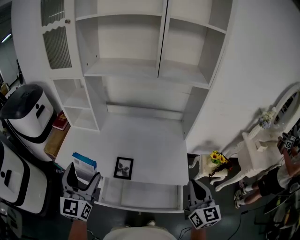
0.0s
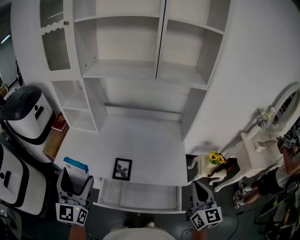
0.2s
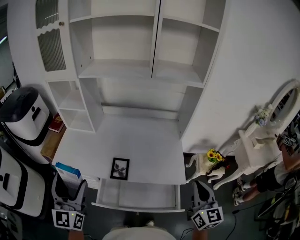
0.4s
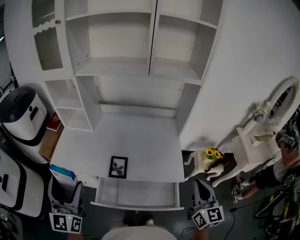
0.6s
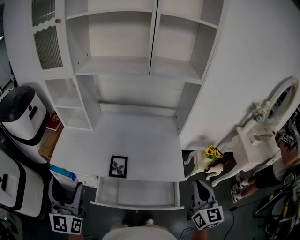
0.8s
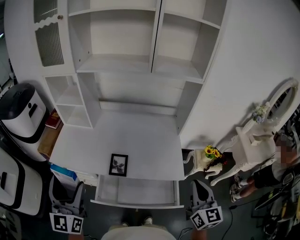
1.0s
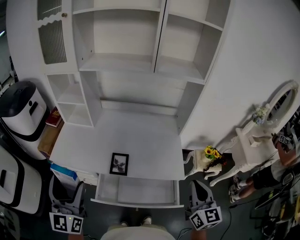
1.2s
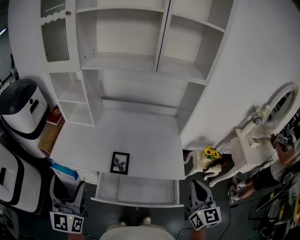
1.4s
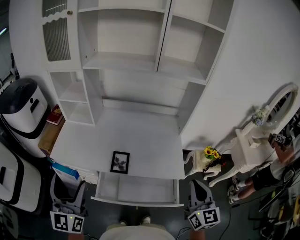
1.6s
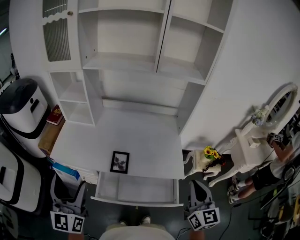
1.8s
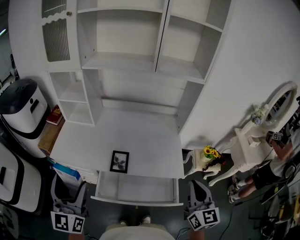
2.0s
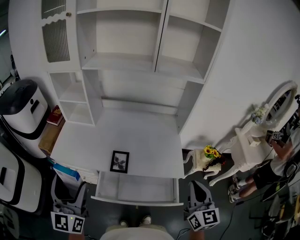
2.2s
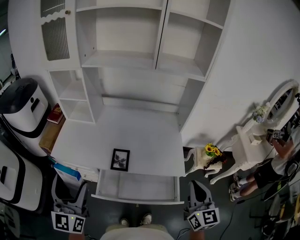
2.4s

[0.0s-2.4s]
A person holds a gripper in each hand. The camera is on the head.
0.0s to 1.2s: The left gripper heads backward, covering some 5 cm.
1.2s to 2.4s: The grippers make only small movements.

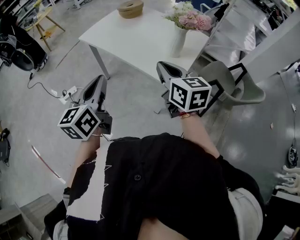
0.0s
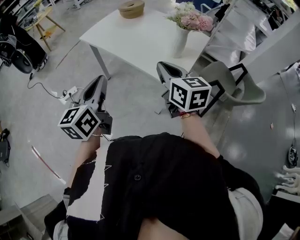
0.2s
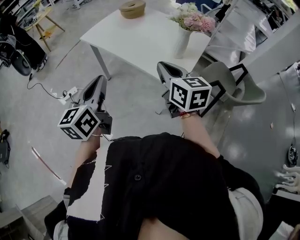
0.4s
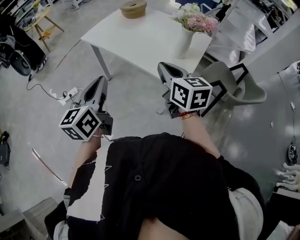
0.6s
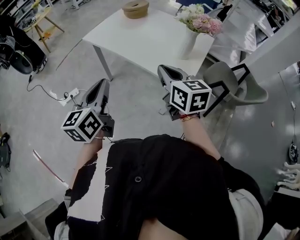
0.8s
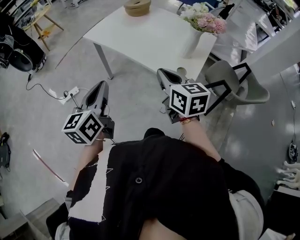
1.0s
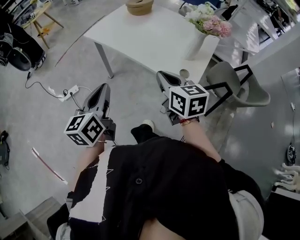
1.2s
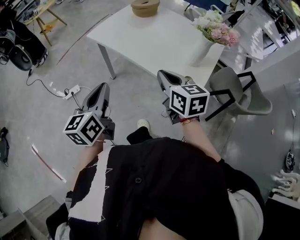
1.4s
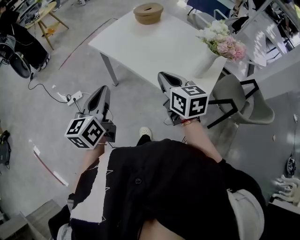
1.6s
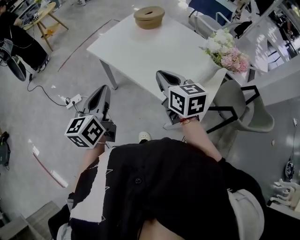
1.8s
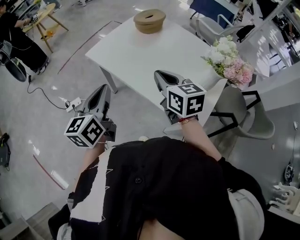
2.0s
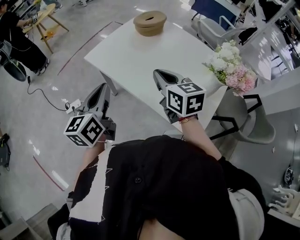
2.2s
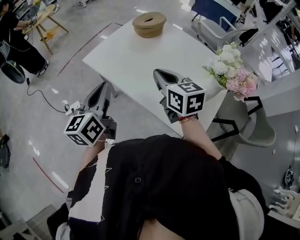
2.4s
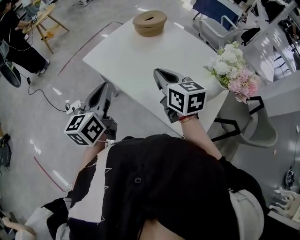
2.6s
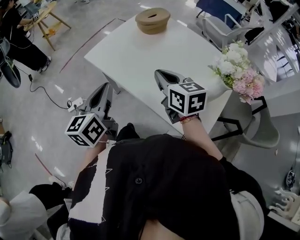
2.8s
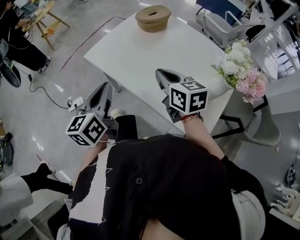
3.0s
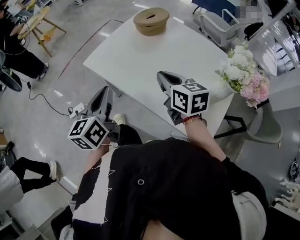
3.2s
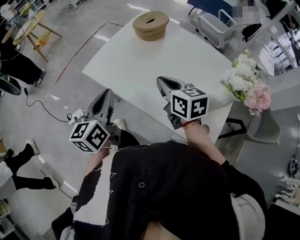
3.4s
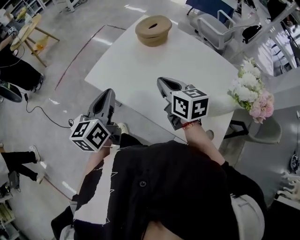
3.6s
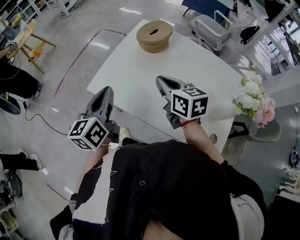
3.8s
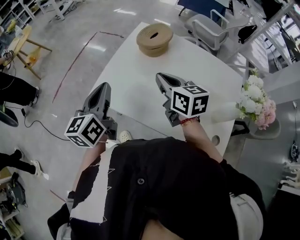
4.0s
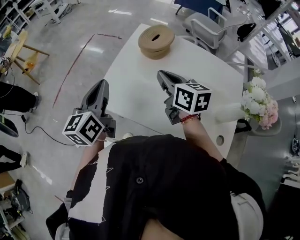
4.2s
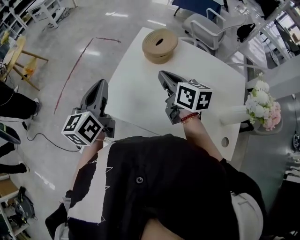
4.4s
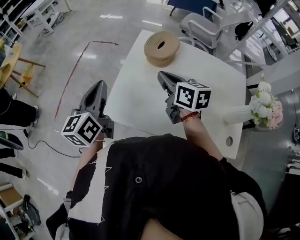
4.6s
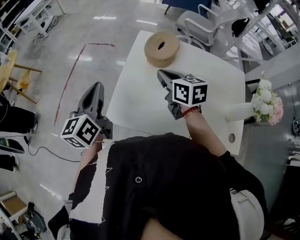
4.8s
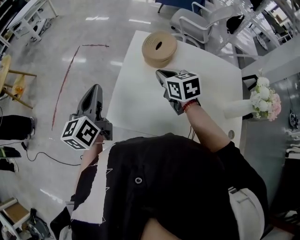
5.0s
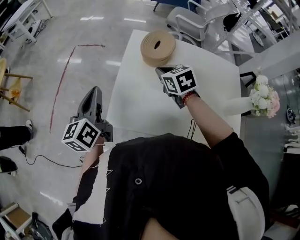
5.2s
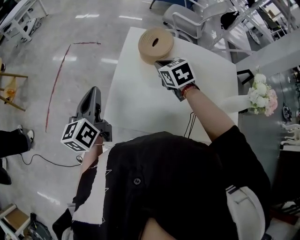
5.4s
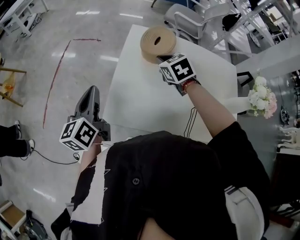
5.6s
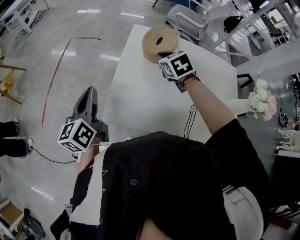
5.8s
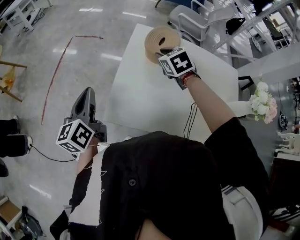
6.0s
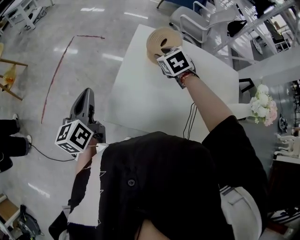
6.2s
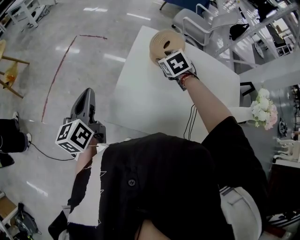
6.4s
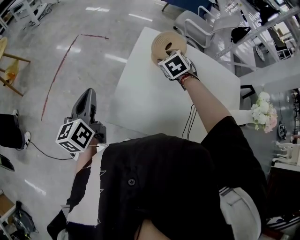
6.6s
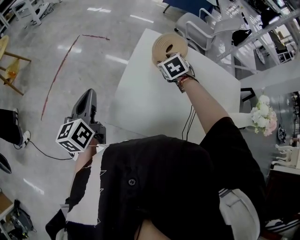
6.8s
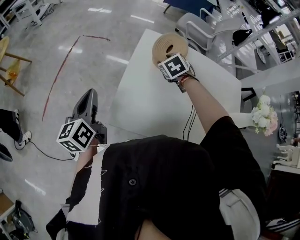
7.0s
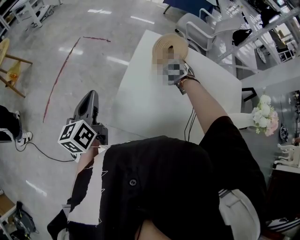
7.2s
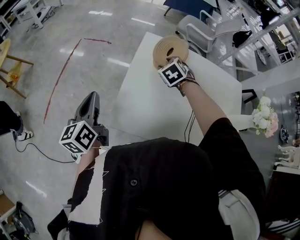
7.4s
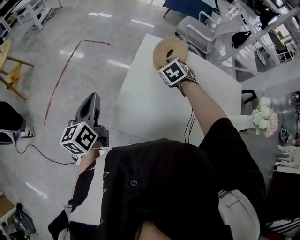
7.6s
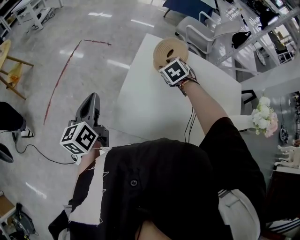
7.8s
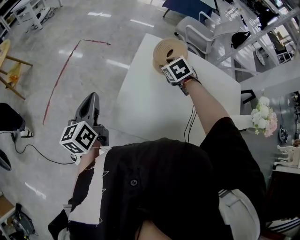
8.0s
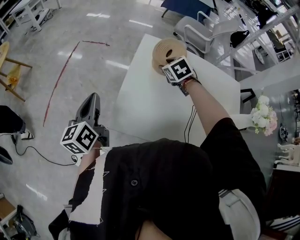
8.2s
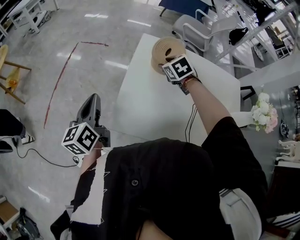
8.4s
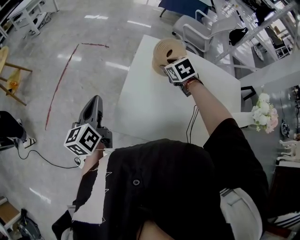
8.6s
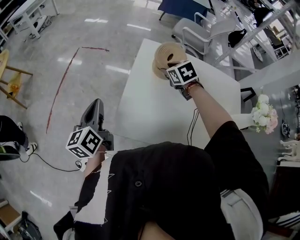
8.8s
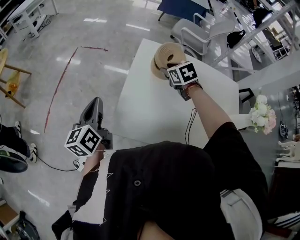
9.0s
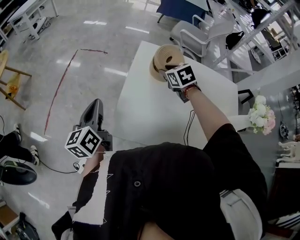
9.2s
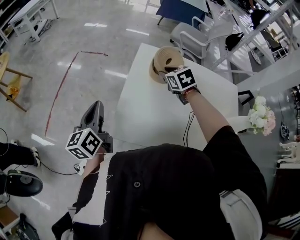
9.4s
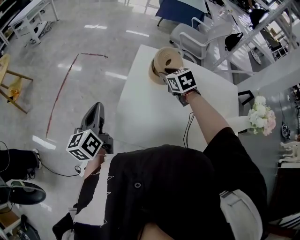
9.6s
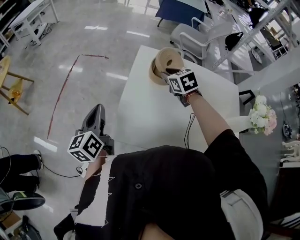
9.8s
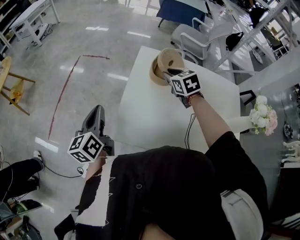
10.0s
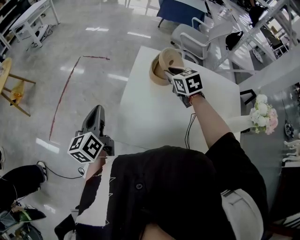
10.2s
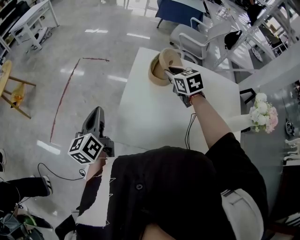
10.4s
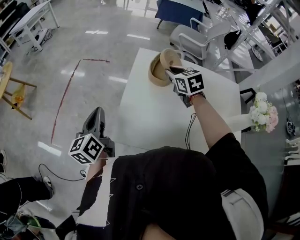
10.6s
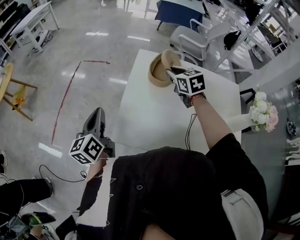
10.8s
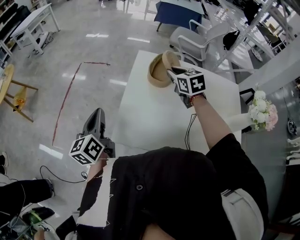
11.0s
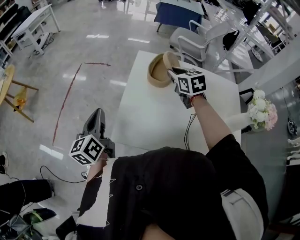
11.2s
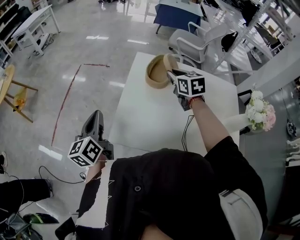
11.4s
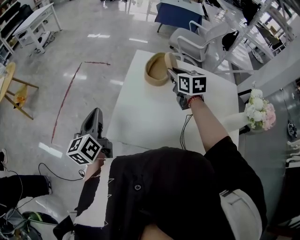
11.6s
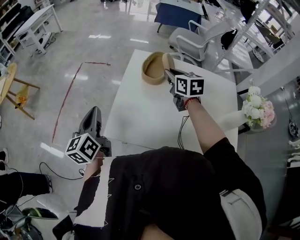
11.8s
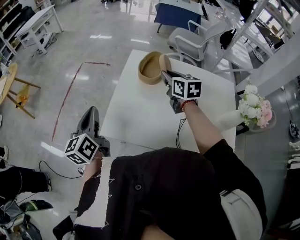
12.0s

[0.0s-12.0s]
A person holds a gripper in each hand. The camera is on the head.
0.0s to 1.6s: Both grippers travel together forward, to the left and downward, roughly 15 cm.
1.6s to 3.0s: Both grippers travel together forward, approximately 15 cm.
3.0s to 4.4s: The right gripper is displaced forward by some 20 cm, and rotates some 20 degrees, while the left gripper travels forward and to the left by some 30 cm.
4.4s to 6.0s: The right gripper travels forward and downward by roughly 15 cm, changes its angle by some 50 degrees, and opens up; the left gripper heads to the left, downward and forward, covering about 15 cm.
6.0s to 7.6s: The right gripper is displaced downward by approximately 5 cm, and opens its fingers.
7.6s to 9.0s: The grippers make only small movements.
9.0s to 10.4s: The right gripper goes roughly 5 cm upward.
10.4s to 12.0s: The right gripper is displaced backward by about 5 cm, and turns by approximately 20 degrees, while the left gripper changes place by approximately 10 cm.

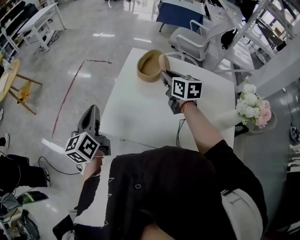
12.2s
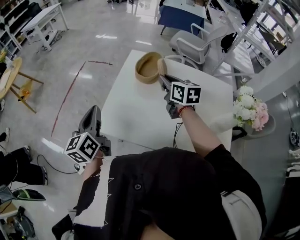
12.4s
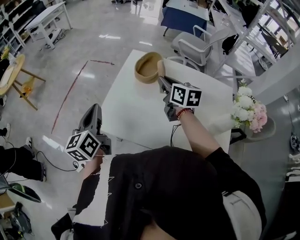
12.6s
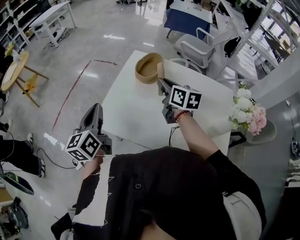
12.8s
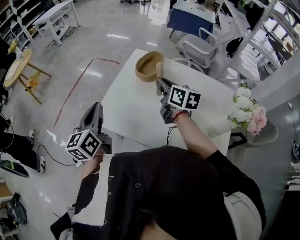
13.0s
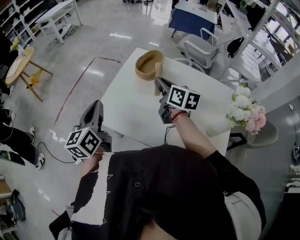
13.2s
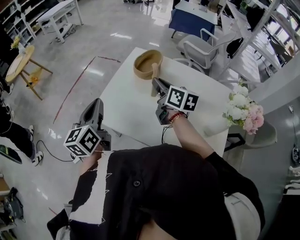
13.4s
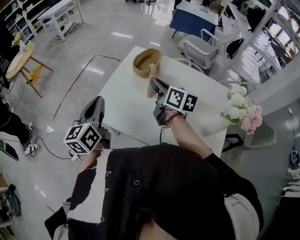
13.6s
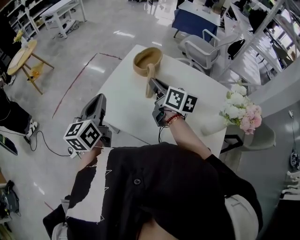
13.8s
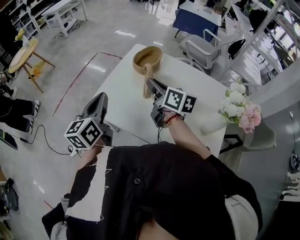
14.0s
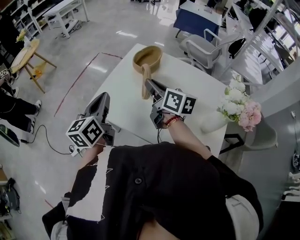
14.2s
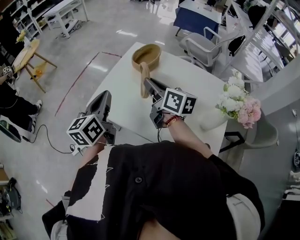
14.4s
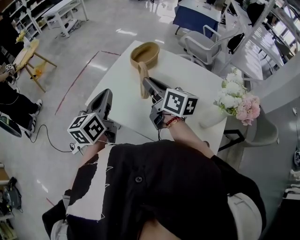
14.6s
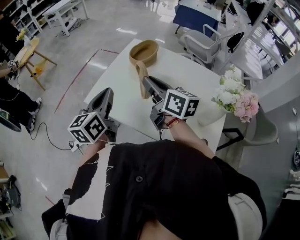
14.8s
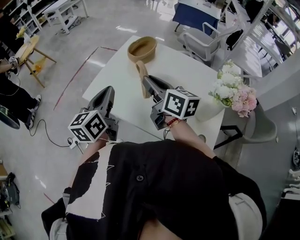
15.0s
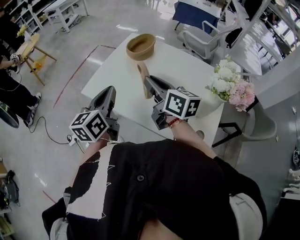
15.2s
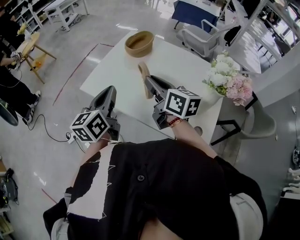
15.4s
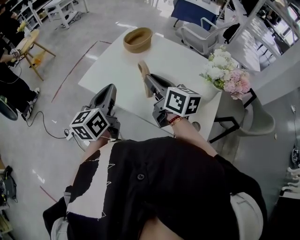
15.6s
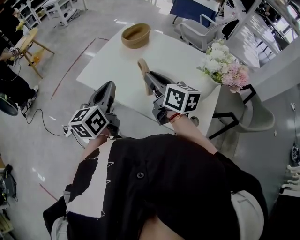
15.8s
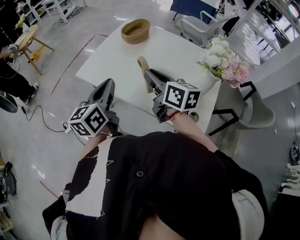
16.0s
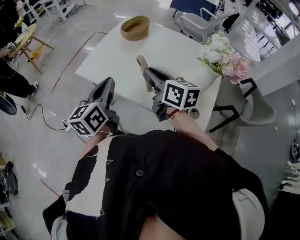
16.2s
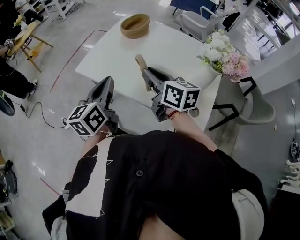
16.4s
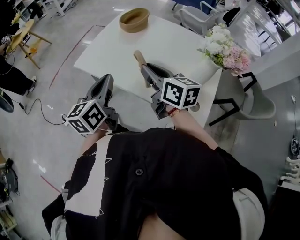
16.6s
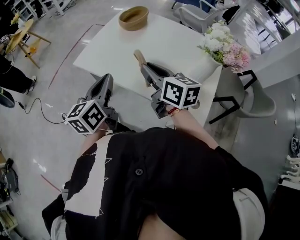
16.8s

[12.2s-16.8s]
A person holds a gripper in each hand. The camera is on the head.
12.2s to 13.8s: The left gripper moves to the right and backward, roughly 15 cm. The right gripper goes about 10 cm backward, and turns by approximately 30 degrees.
13.8s to 15.2s: The right gripper is displaced backward by roughly 10 cm. The left gripper heads backward and to the right, covering some 10 cm.
15.2s to 16.8s: The grippers both shift backward by roughly 10 cm.

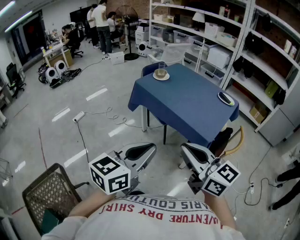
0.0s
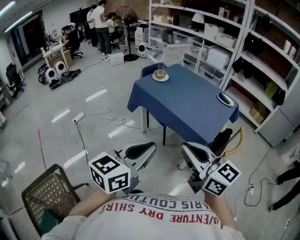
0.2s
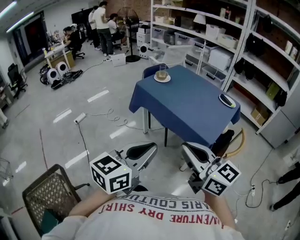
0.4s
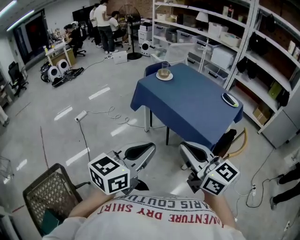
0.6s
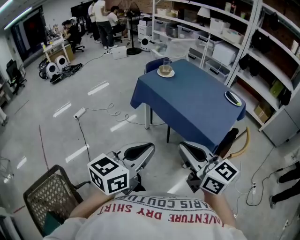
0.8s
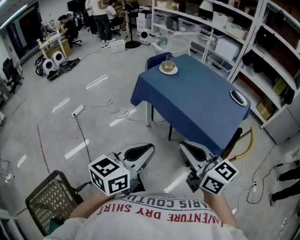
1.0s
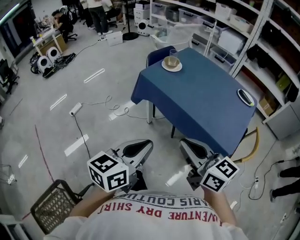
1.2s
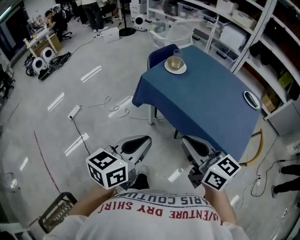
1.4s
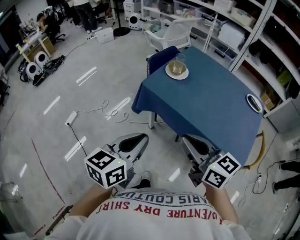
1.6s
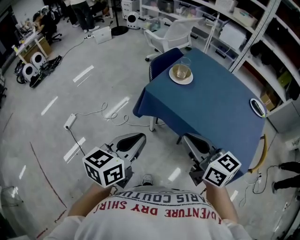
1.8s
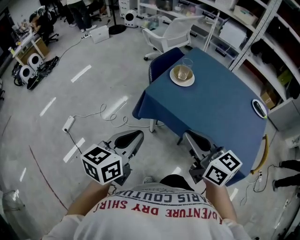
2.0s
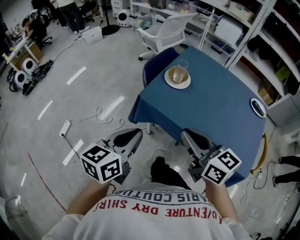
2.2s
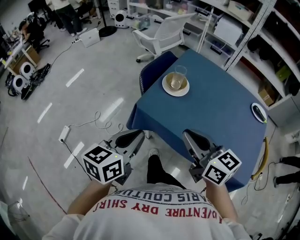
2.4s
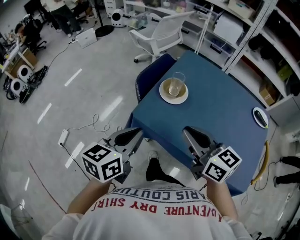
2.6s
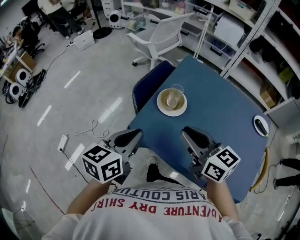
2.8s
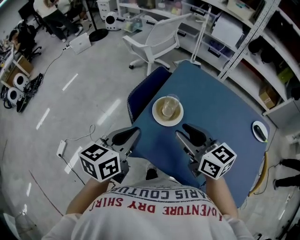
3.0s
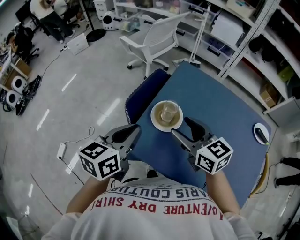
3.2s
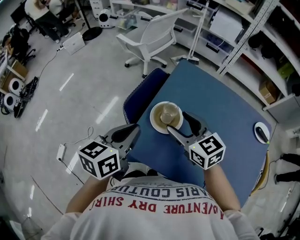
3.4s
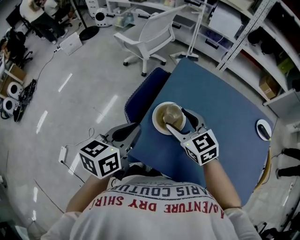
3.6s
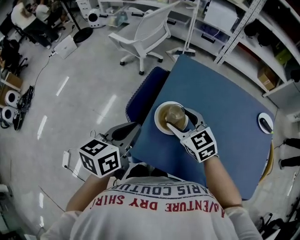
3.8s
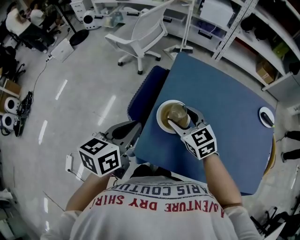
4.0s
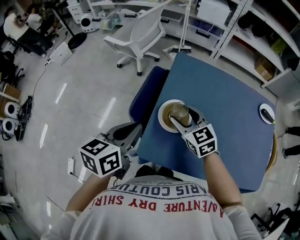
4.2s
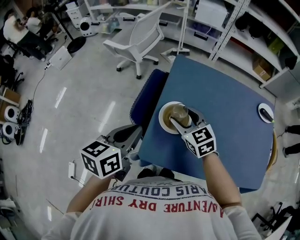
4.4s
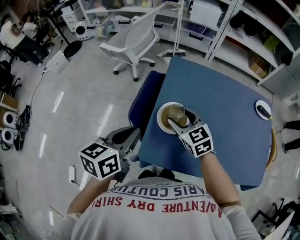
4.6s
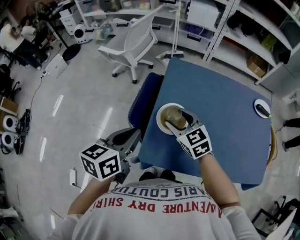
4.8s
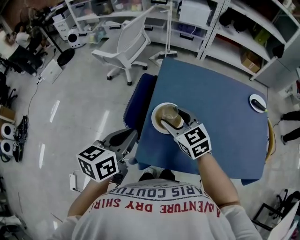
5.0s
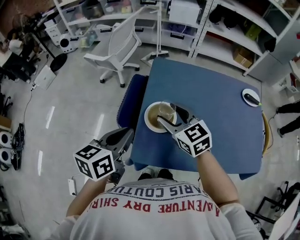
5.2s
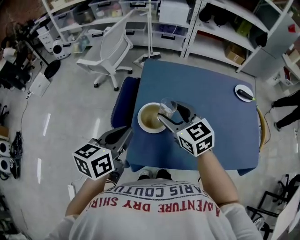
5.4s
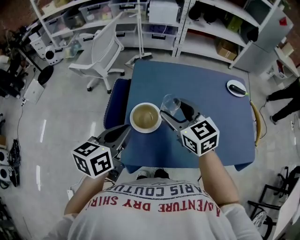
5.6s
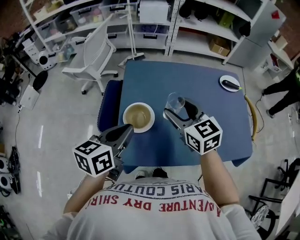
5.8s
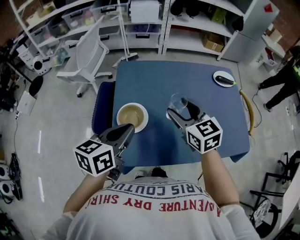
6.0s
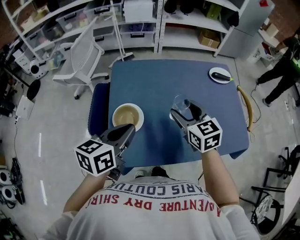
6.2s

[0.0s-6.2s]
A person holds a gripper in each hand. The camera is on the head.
0.0s to 1.6s: Both grippers travel together forward and to the left, approximately 35 cm.
1.6s to 3.2s: The two grippers go some 40 cm forward. The right gripper opens up.
3.2s to 4.6s: The right gripper shifts roughly 10 cm downward and forward, and changes its angle by some 20 degrees. Meanwhile the left gripper shifts by roughly 5 cm.
4.6s to 6.2s: Both grippers move to the right, roughly 20 cm. The right gripper rotates about 30 degrees. Meanwhile the left gripper swivels approximately 20 degrees.
